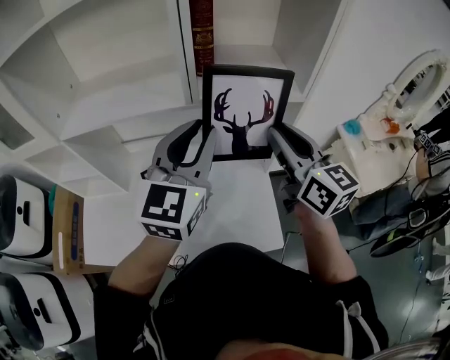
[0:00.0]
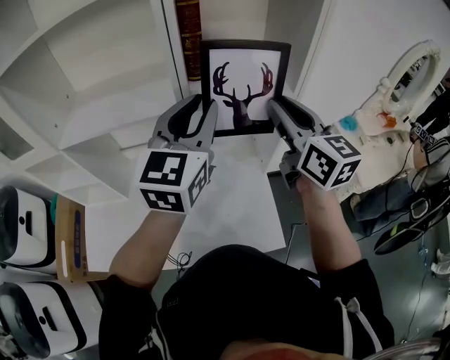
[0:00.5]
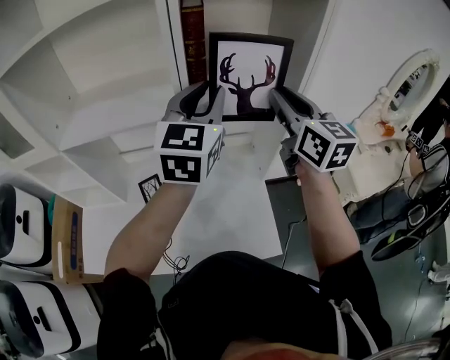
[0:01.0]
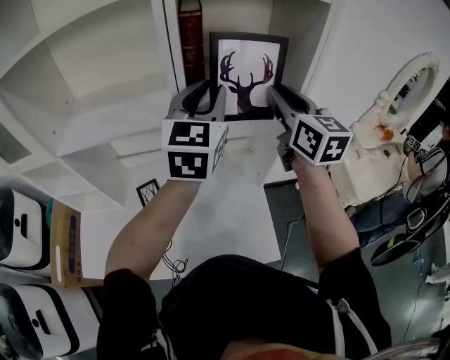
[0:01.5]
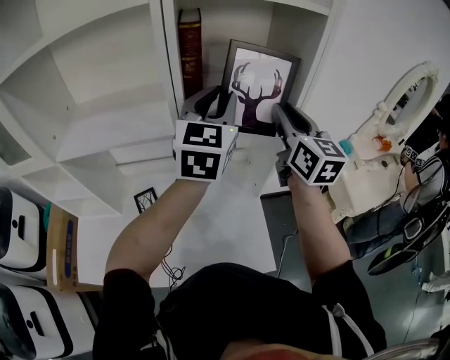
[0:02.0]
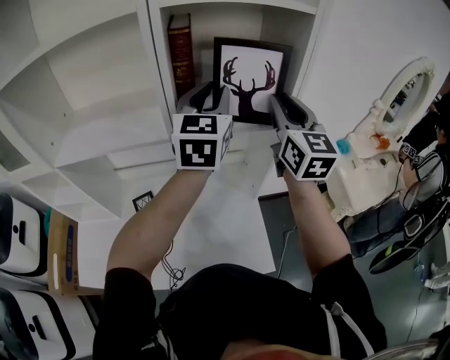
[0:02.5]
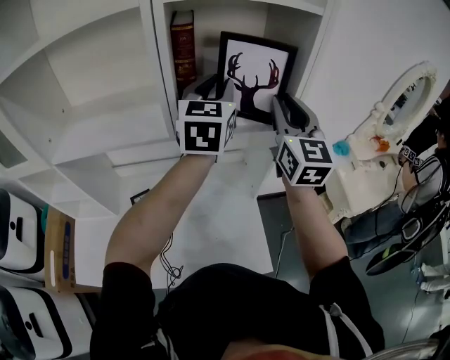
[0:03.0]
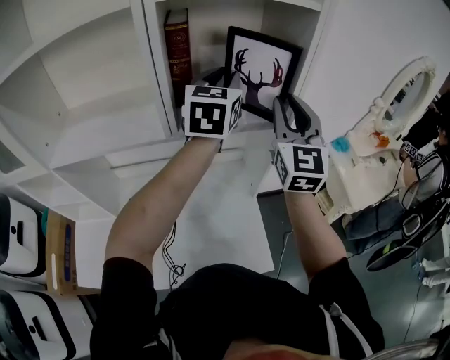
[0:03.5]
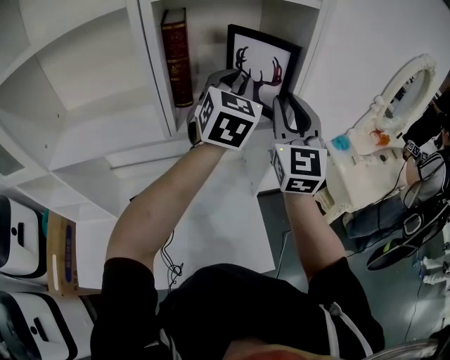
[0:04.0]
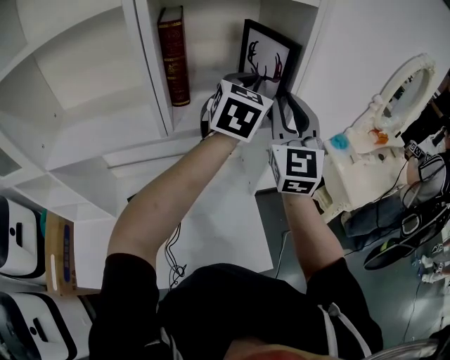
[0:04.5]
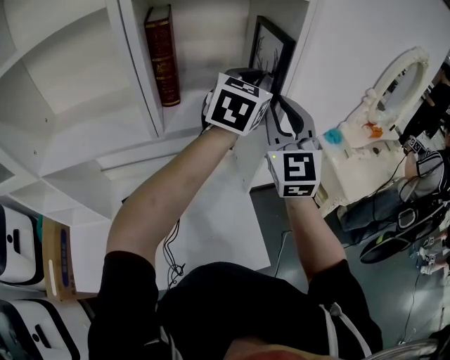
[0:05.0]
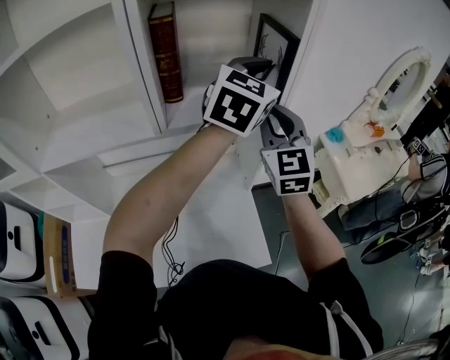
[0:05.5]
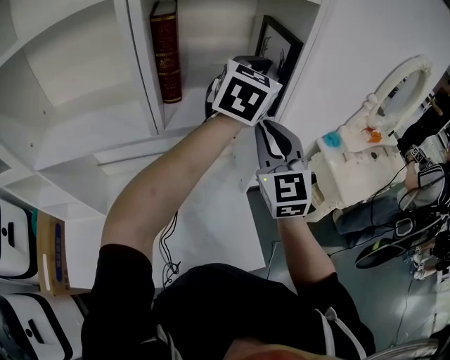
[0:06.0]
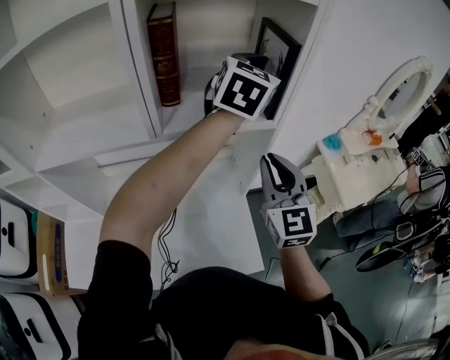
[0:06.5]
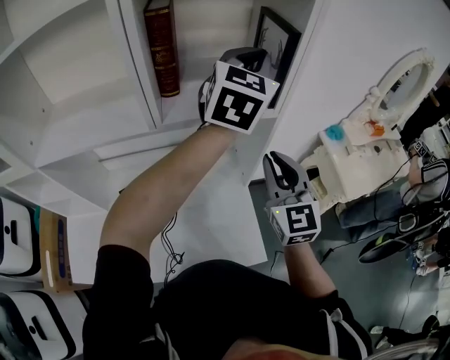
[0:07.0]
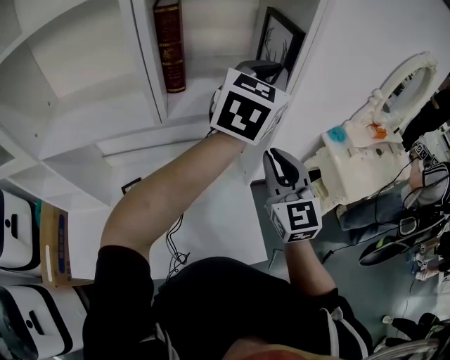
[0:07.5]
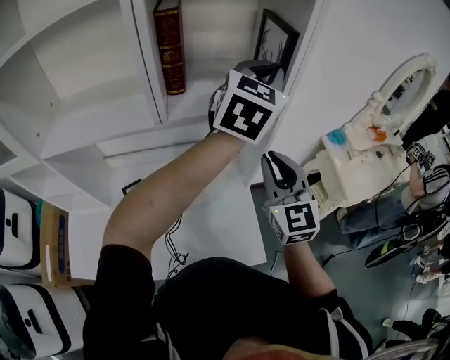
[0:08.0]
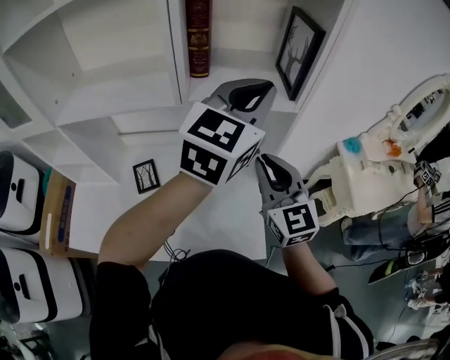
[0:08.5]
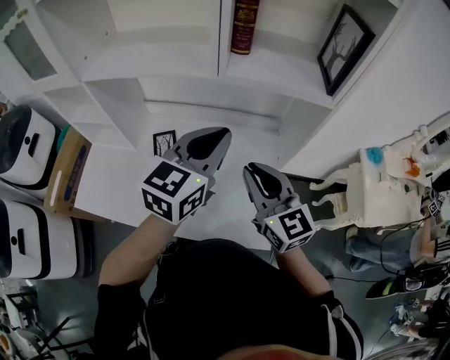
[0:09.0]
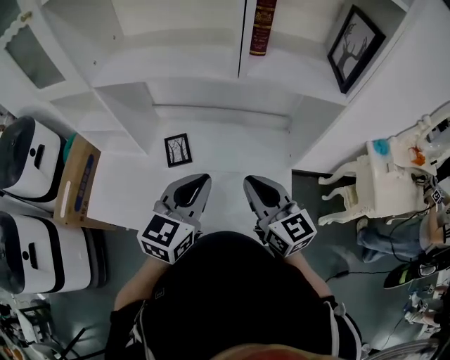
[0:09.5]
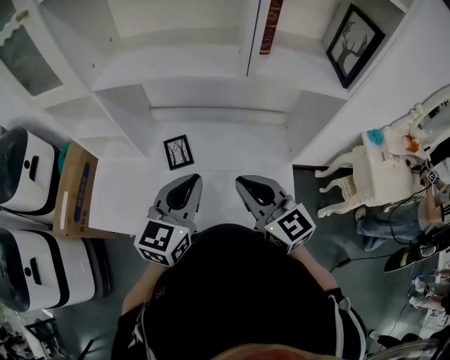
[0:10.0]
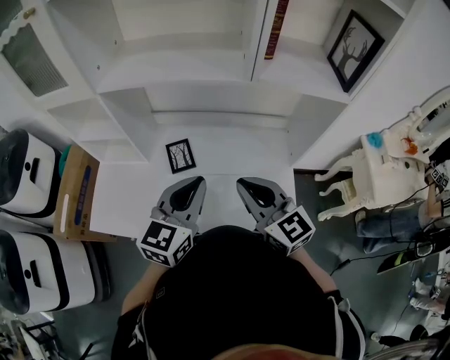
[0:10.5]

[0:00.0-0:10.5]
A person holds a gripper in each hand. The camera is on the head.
0:00.0 to 0:02.0: Both grippers travel together forward and to the right, approximately 15 cm.
0:02.0 to 0:04.0: The right gripper swivels approximately 30 degrees, while the left gripper is displaced forward and to the right by approximately 10 cm.
0:04.0 to 0:06.5: The left gripper travels to the right by some 5 cm. Meanwhile the right gripper heads downward and backward, covering roughly 15 cm.
0:06.5 to 0:08.5: The right gripper travels backward by approximately 5 cm. Meanwhile the left gripper shifts about 15 cm backward.
0:08.5 to 0:10.5: The right gripper is displaced to the left by approximately 20 cm, and swivels some 30 degrees. The left gripper shifts some 35 cm to the left, downward and backward, and turns by about 20 degrees.

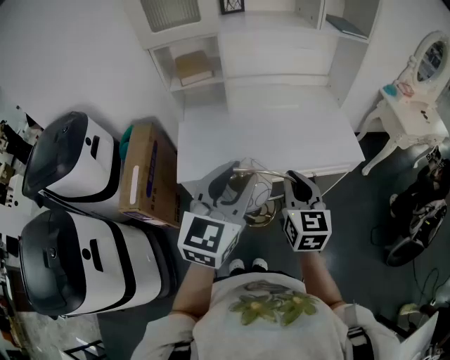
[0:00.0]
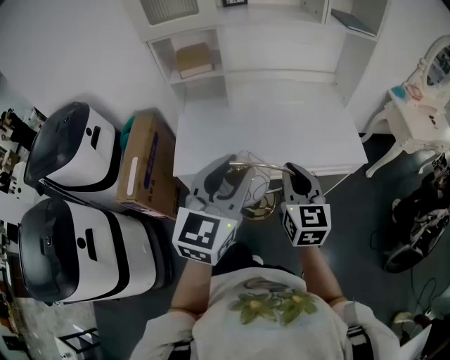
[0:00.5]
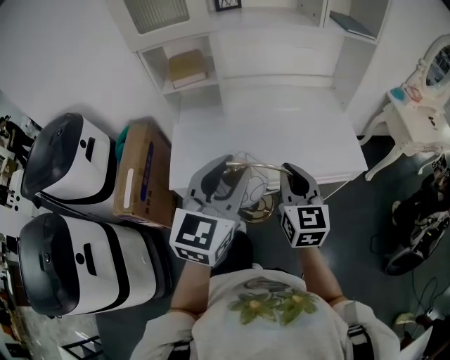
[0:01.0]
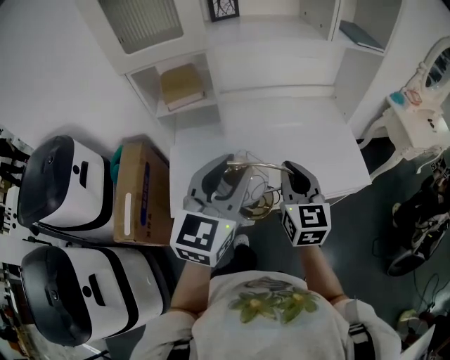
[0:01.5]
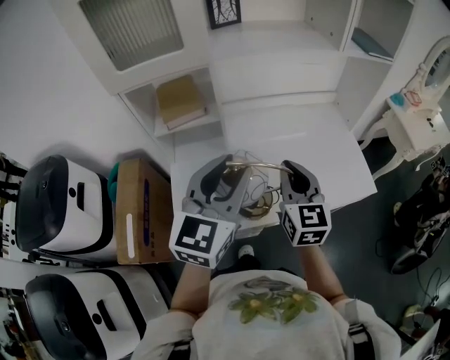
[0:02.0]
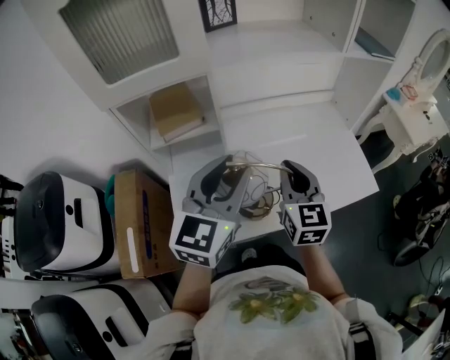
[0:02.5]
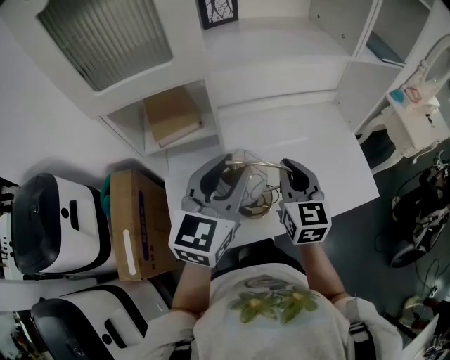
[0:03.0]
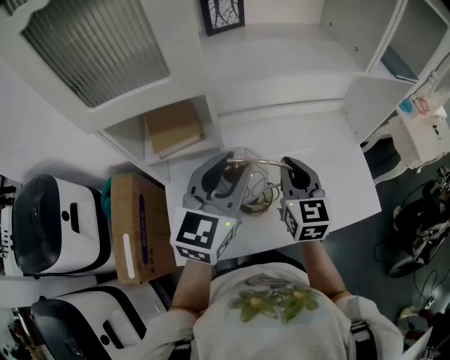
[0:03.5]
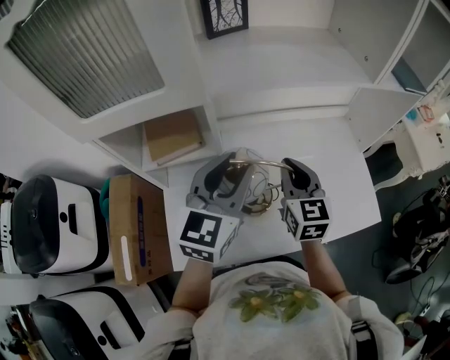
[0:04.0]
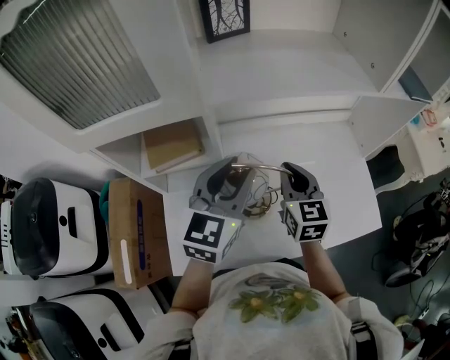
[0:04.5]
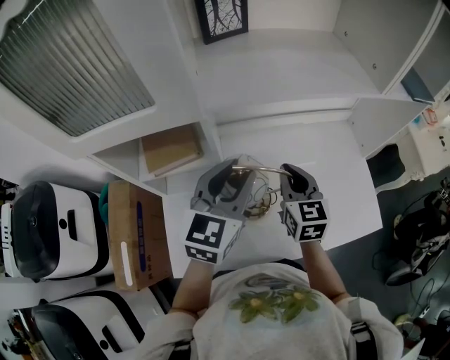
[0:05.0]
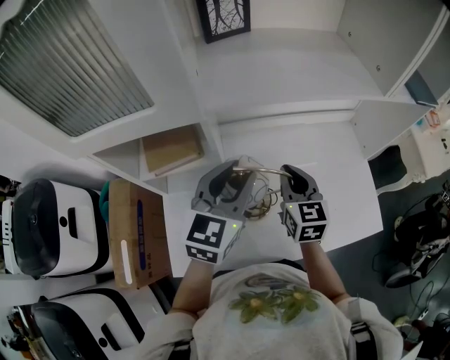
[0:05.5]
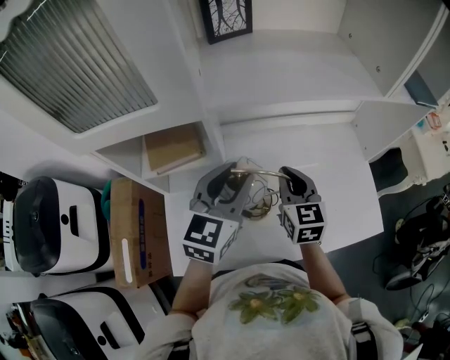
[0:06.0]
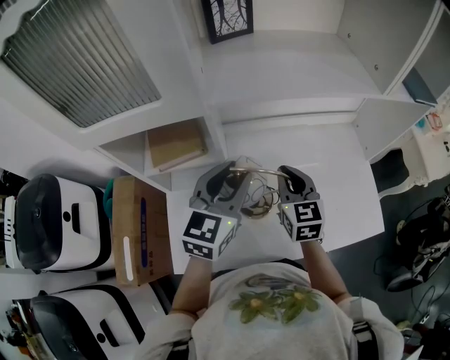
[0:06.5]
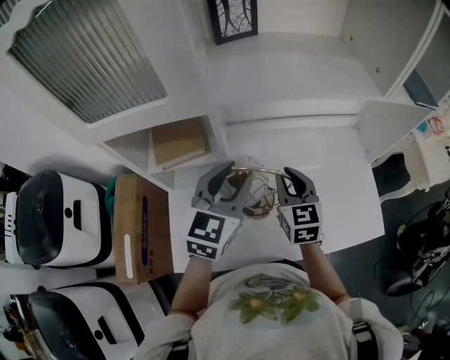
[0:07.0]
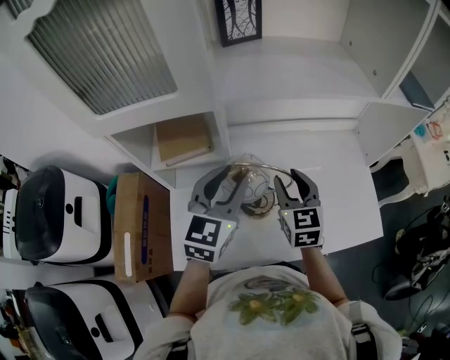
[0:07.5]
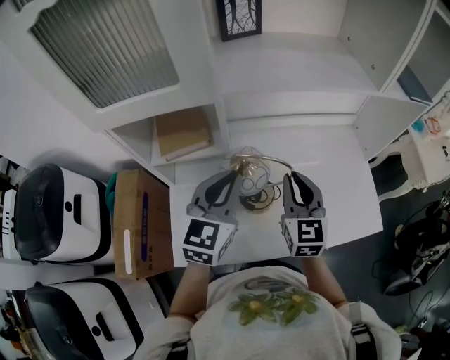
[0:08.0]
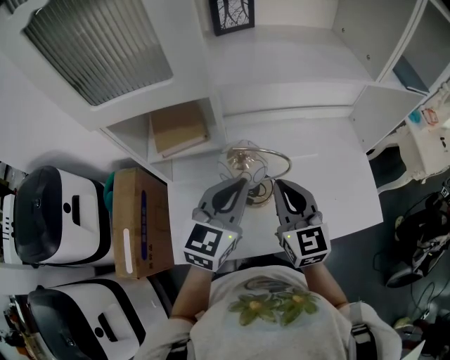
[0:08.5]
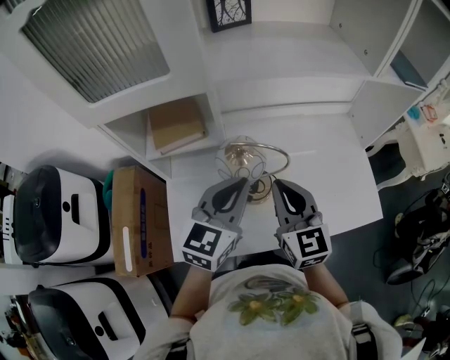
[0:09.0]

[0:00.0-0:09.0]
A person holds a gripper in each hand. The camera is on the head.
0:00.0 to 0:02.0: The grippers both shift forward by about 25 cm.
0:02.0 to 0:04.5: The grippers both shift forward by about 20 cm.
0:04.5 to 0:07.0: The grippers move only a little.
0:07.0 to 0:09.0: The left gripper is displaced backward by some 10 cm, and closes its fingers. The right gripper is displaced backward and upward by some 10 cm, and opens, then closes again.

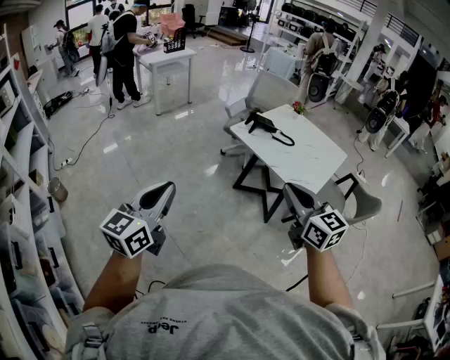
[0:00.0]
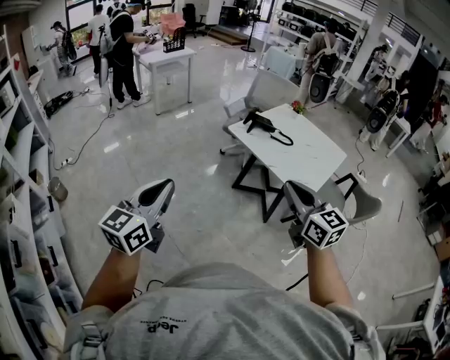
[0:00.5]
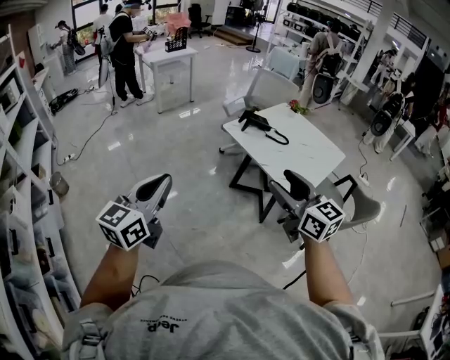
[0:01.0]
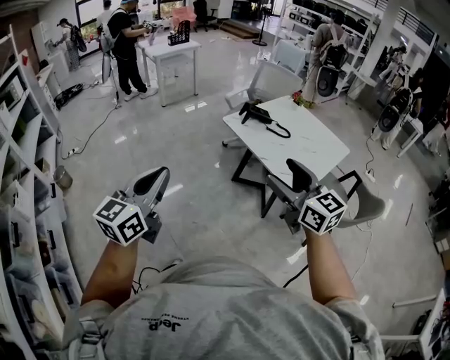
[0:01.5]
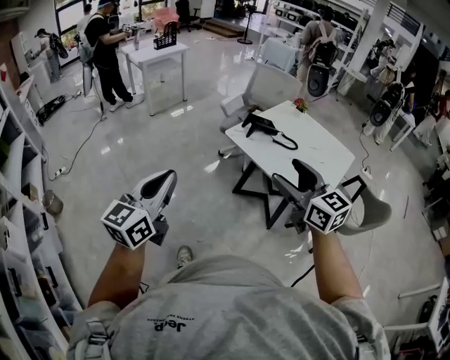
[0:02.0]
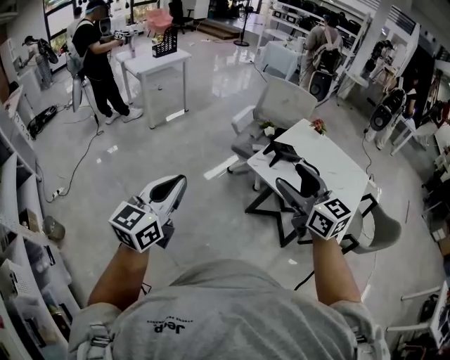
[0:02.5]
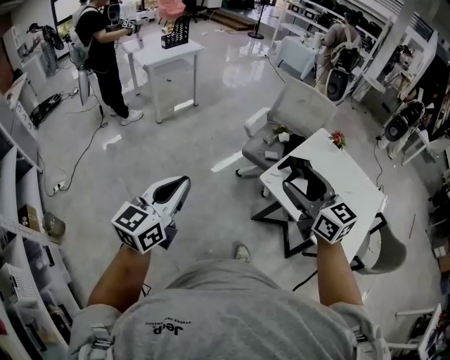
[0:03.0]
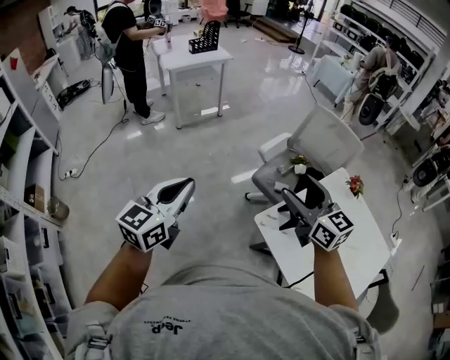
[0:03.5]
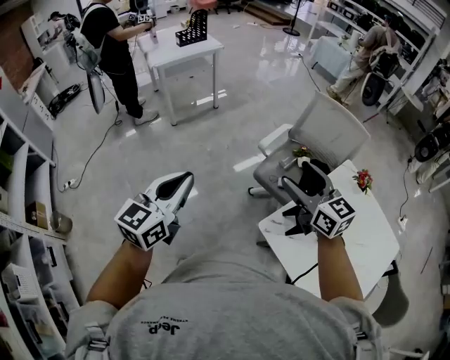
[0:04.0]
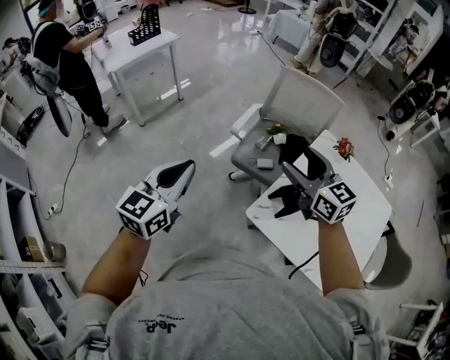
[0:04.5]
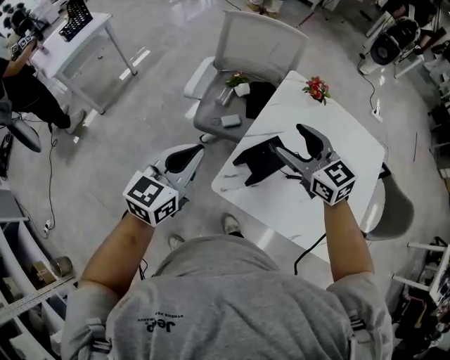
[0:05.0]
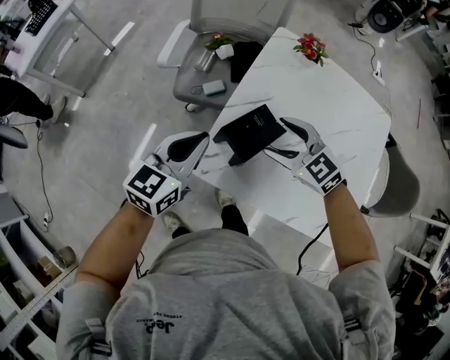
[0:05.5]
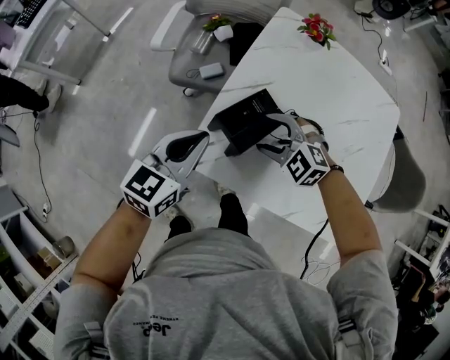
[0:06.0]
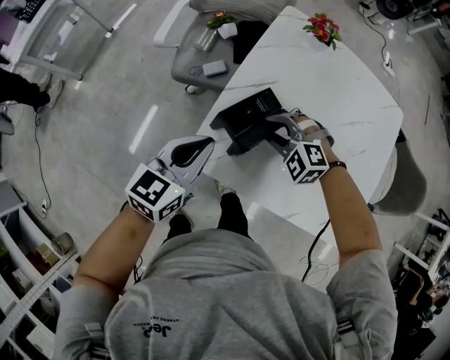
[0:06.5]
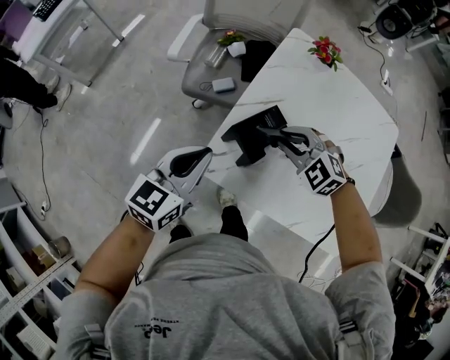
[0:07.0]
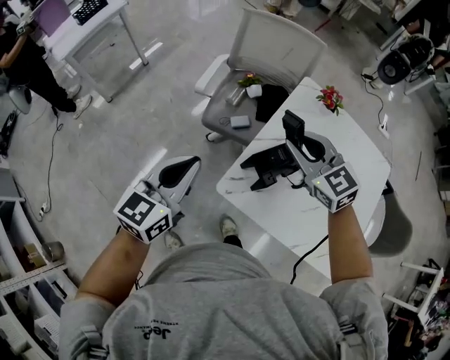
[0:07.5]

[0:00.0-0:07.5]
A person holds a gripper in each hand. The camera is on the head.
0:00.0 to 0:02.0: The two grippers go some 15 cm forward. The right gripper opens.
0:02.0 to 0:04.0: The two grippers travel together, forward, some 60 cm.
0:04.0 to 0:05.5: The grippers both shift to the right and downward by some 35 cm. The right gripper changes its angle by approximately 30 degrees; the left gripper changes its angle by some 40 degrees.
0:05.5 to 0:07.5: The left gripper travels to the left and upward by some 15 cm. The right gripper moves upward and to the left, roughly 15 cm, and closes.
